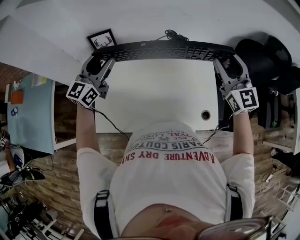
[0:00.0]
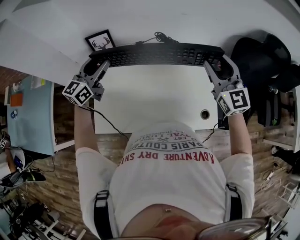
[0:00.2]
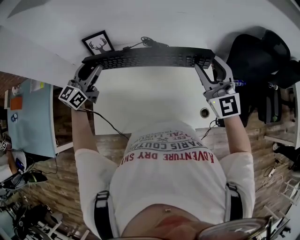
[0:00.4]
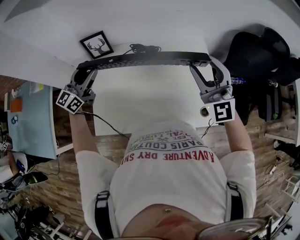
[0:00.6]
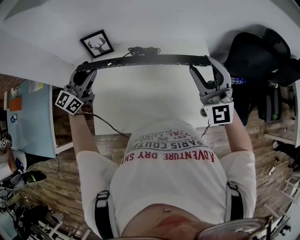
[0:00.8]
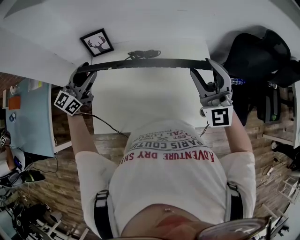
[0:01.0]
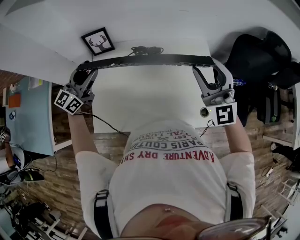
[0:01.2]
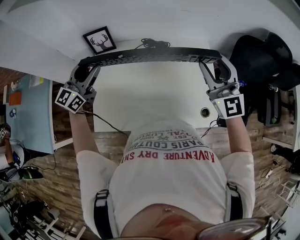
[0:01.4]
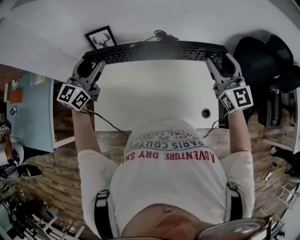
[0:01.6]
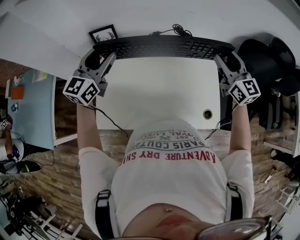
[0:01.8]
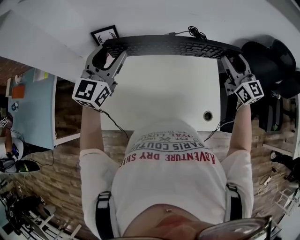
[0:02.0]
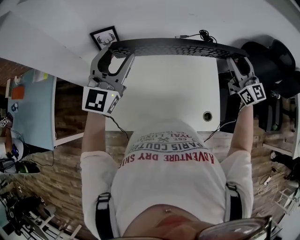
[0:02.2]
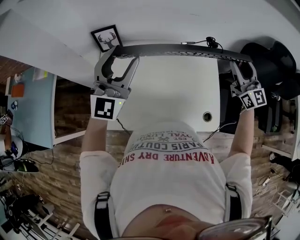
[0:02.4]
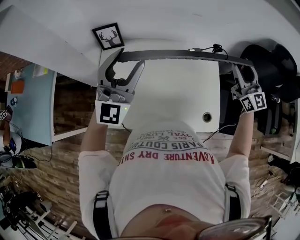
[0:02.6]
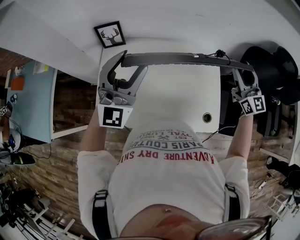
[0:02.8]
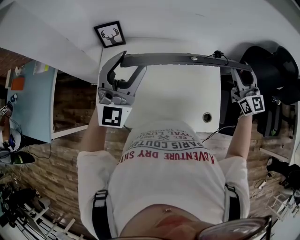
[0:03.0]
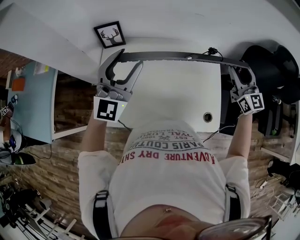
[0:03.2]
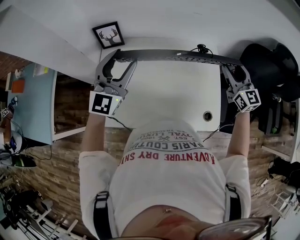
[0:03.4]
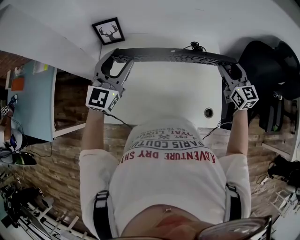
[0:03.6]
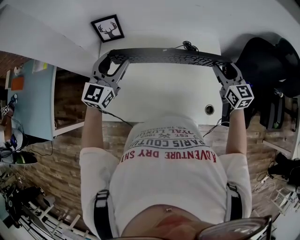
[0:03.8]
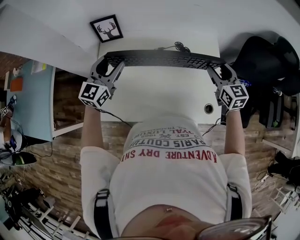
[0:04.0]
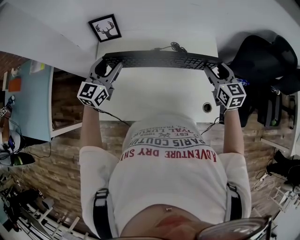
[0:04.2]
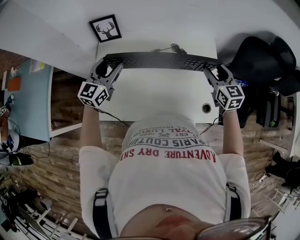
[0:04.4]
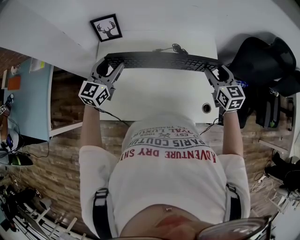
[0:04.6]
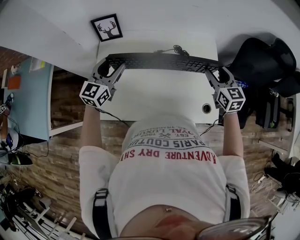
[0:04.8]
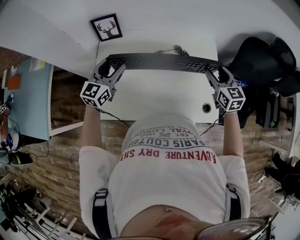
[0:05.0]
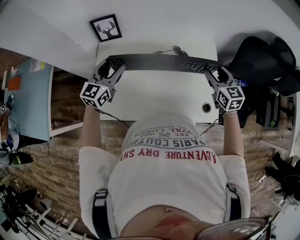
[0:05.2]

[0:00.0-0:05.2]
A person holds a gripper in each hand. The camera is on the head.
0:01.8 to 0:03.4: The left gripper travels to the right by about 5 cm. The right gripper shifts approximately 5 cm downward.
0:03.4 to 0:05.2: The left gripper goes some 15 cm downward and to the left, and rotates roughly 30 degrees; the right gripper travels downward and to the left by about 10 cm.

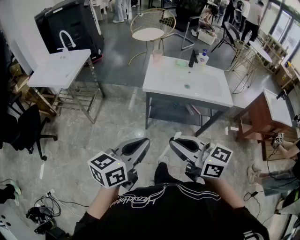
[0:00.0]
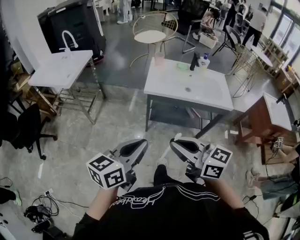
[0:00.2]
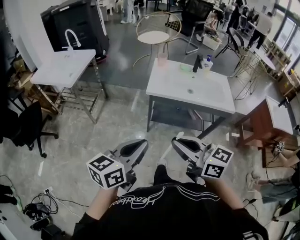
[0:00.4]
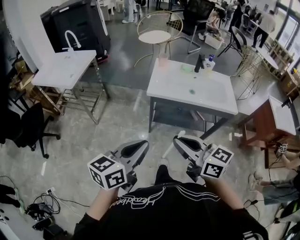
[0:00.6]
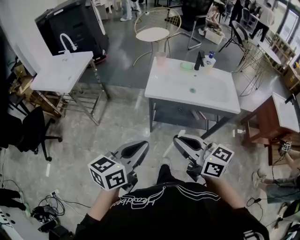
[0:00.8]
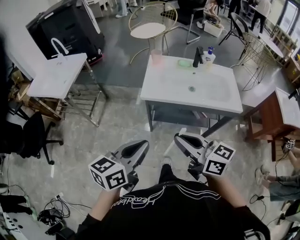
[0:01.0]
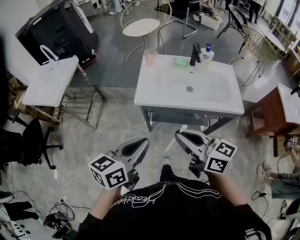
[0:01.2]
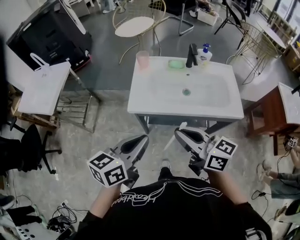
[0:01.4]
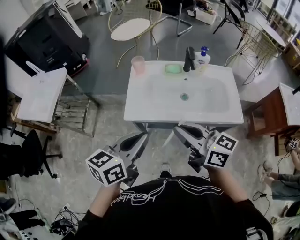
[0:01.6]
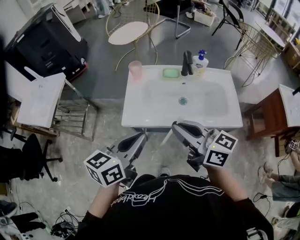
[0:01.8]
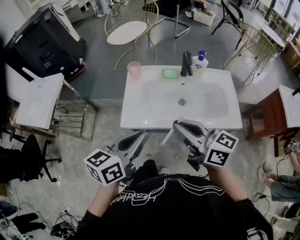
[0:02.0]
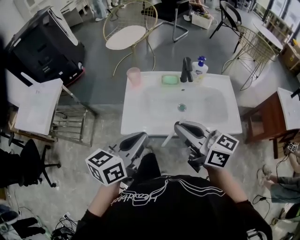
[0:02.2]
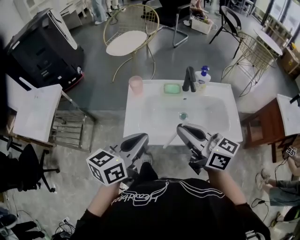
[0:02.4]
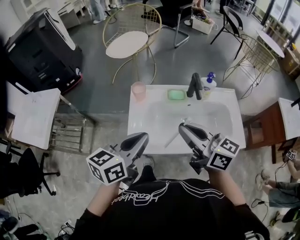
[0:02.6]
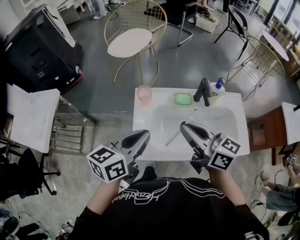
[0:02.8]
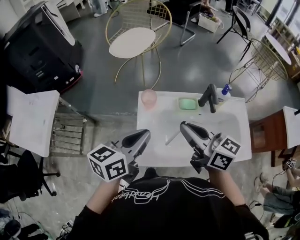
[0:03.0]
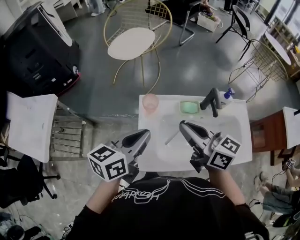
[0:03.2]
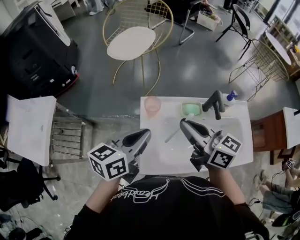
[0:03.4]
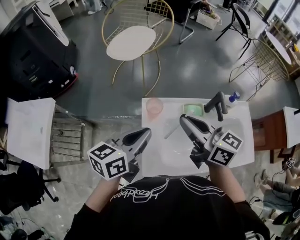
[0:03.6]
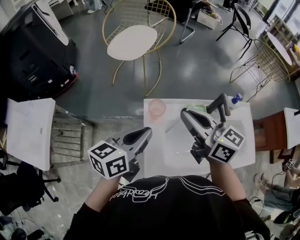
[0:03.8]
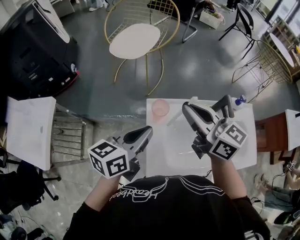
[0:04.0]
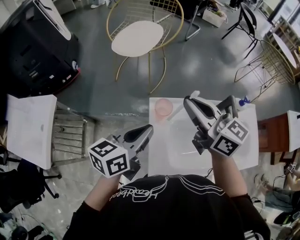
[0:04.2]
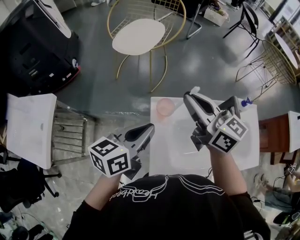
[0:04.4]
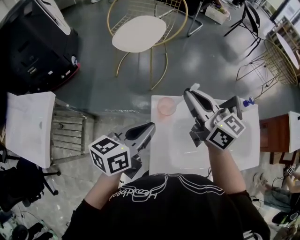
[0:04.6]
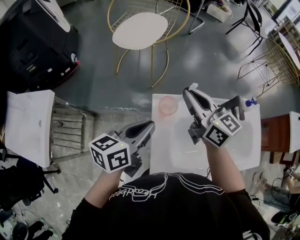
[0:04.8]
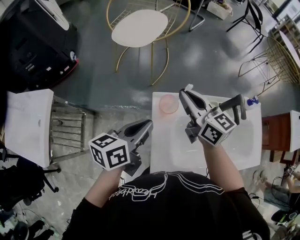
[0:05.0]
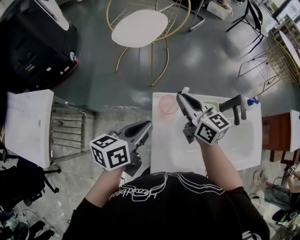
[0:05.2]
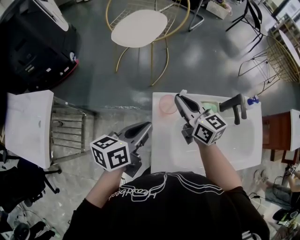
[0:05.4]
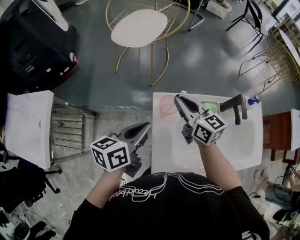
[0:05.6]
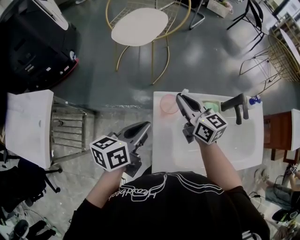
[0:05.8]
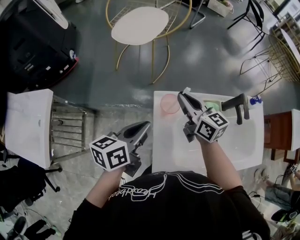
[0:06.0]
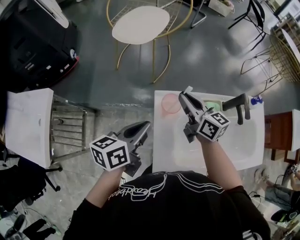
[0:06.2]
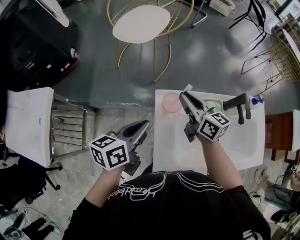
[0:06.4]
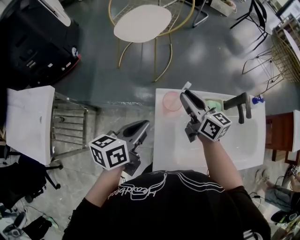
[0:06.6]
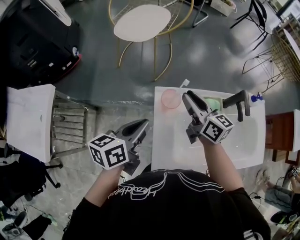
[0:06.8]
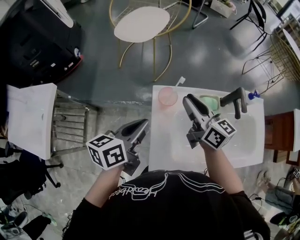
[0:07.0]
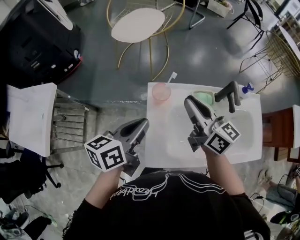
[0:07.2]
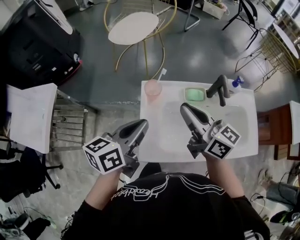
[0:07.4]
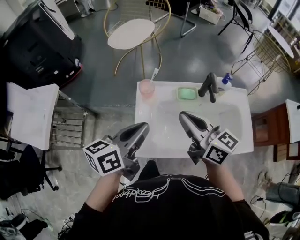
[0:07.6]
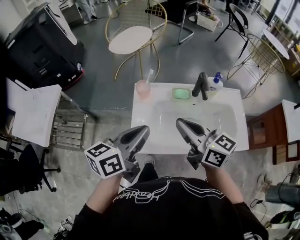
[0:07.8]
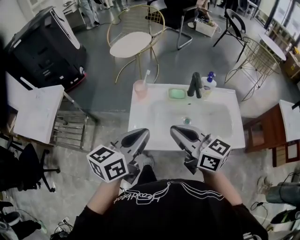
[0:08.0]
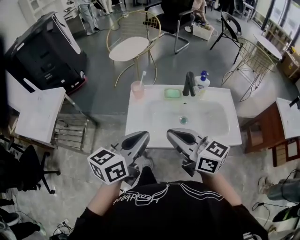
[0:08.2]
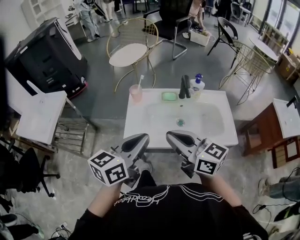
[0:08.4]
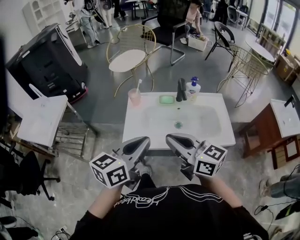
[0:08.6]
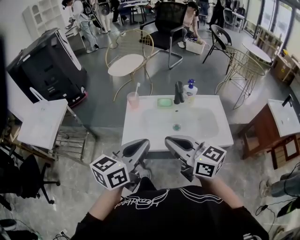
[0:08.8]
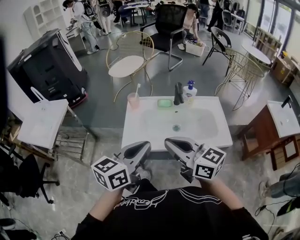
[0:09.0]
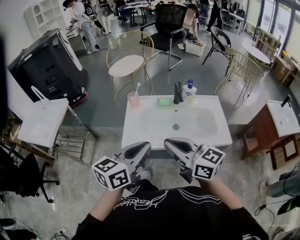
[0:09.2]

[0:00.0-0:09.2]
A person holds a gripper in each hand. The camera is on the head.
0:00.0 to 0:01.6: Both grippers move forward and to the right, roughly 35 cm.
0:01.6 to 0:03.0: Both grippers move forward, roughly 25 cm.
0:03.0 to 0:04.6: The right gripper is displaced forward and to the left by about 20 cm, while the left gripper heads forward and to the left, covering about 10 cm.
0:04.6 to 0:06.2: The left gripper moves downward, roughly 5 cm; the right gripper shifts about 15 cm downward.
0:06.2 to 0:07.6: The two grippers go some 20 cm backward, upward and to the right.
0:07.6 to 0:09.2: The right gripper travels backward by some 25 cm. Meanwhile the left gripper shifts some 25 cm backward and to the right.

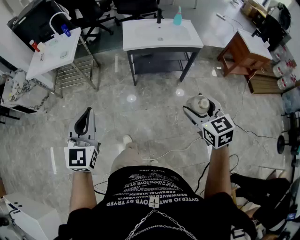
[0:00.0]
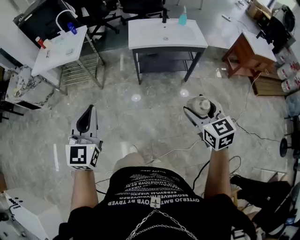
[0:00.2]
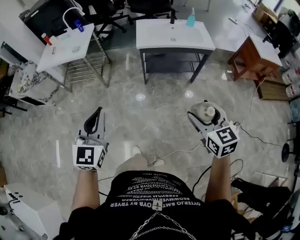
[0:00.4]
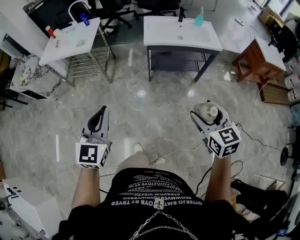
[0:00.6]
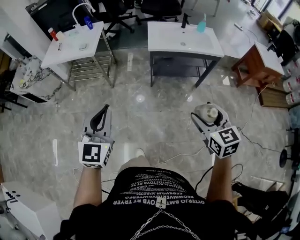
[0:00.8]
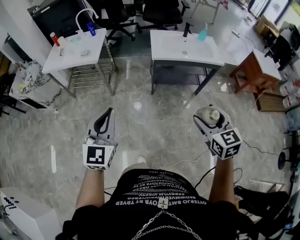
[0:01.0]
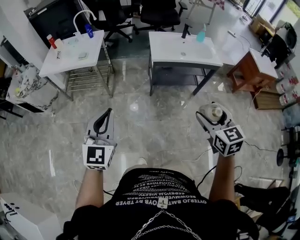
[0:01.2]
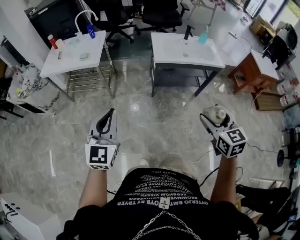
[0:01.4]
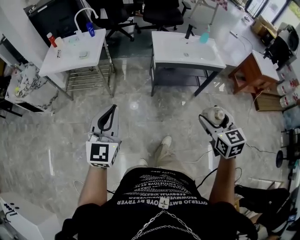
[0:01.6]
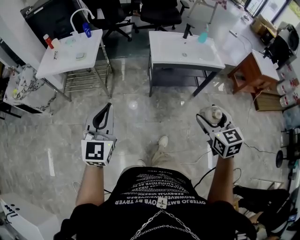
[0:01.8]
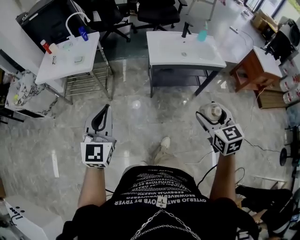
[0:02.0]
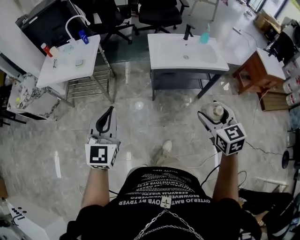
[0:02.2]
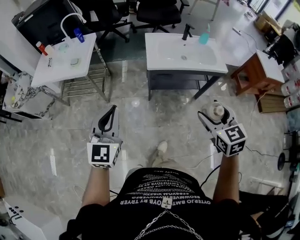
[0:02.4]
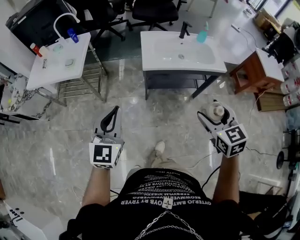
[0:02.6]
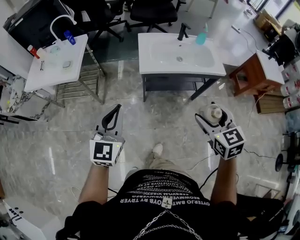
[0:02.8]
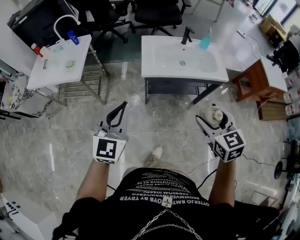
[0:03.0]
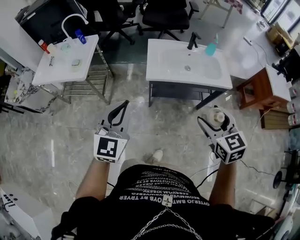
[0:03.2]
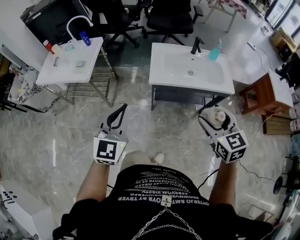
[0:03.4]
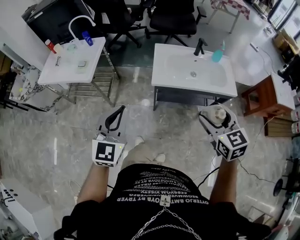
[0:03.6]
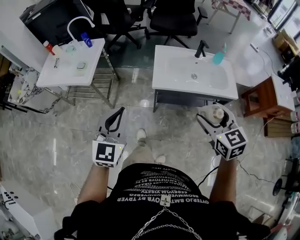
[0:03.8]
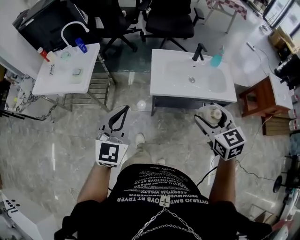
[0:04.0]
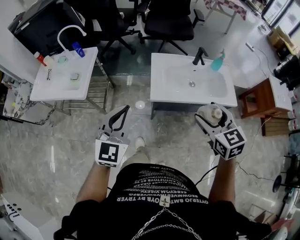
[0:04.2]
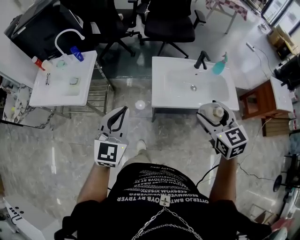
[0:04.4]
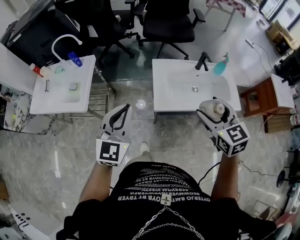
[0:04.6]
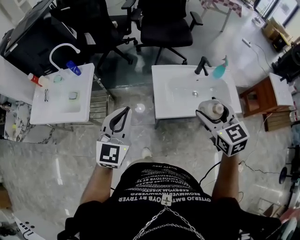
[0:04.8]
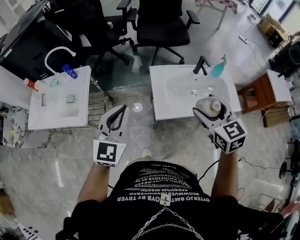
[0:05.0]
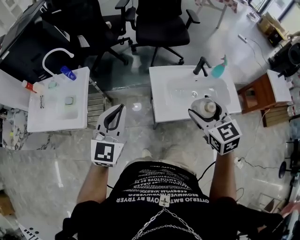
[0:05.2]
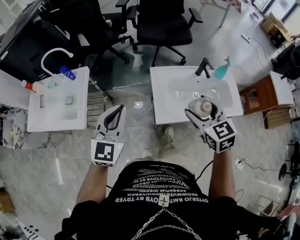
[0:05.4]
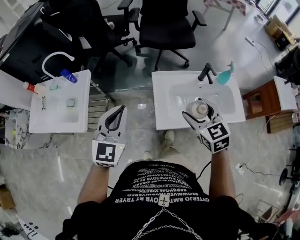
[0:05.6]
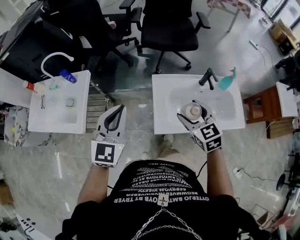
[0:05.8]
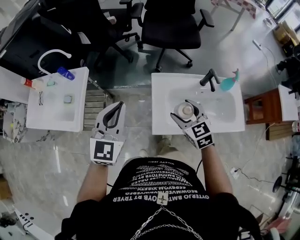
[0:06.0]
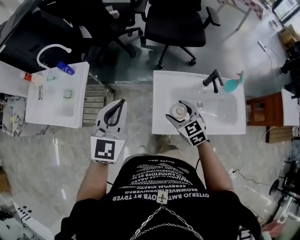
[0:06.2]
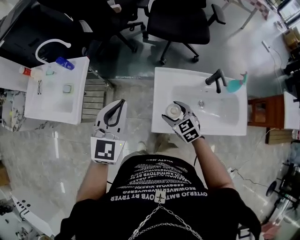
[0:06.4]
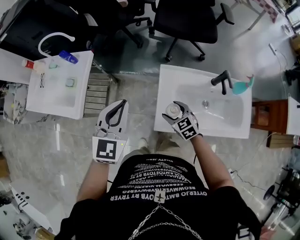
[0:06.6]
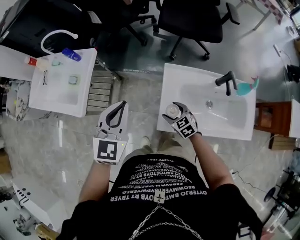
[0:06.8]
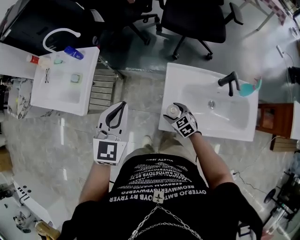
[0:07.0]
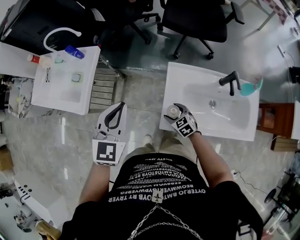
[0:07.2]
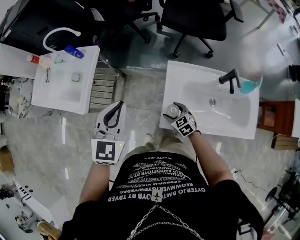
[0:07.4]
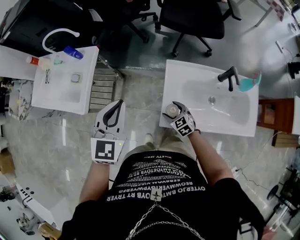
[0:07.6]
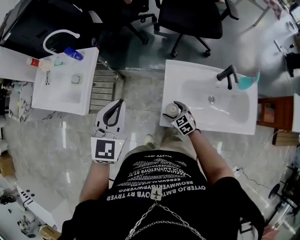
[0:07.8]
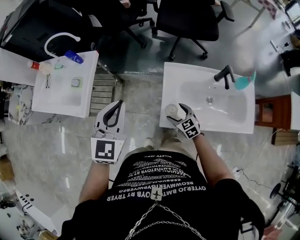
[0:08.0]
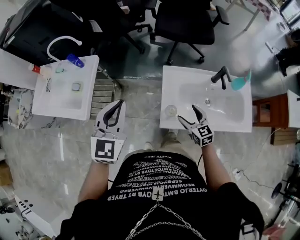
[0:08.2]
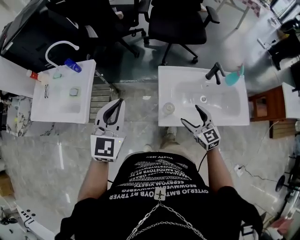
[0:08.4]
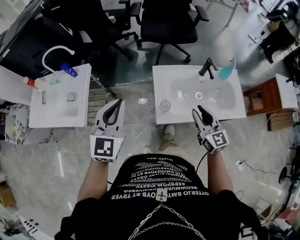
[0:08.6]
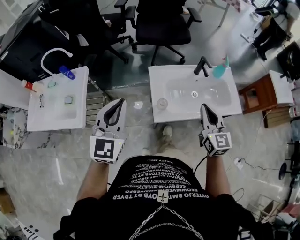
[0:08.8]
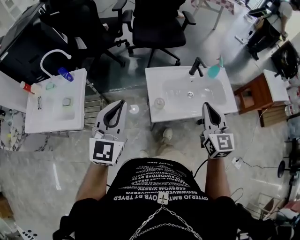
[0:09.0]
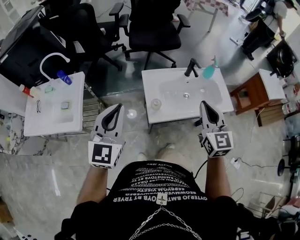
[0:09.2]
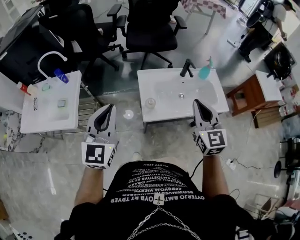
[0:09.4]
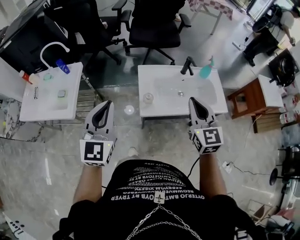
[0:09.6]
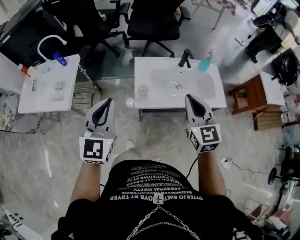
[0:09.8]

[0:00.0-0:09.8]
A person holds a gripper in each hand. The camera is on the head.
0:00.0 to 0:01.4: The right gripper goes some 15 cm to the left. The left gripper is displaced to the left and forward by approximately 15 cm.
0:01.4 to 0:02.8: The two grippers go about 25 cm forward and to the right.
0:02.8 to 0:04.2: Both grippers move forward, about 20 cm.
0:04.2 to 0:05.6: The grippers both shift forward by approximately 25 cm.
0:05.6 to 0:07.0: The right gripper travels downward by some 30 cm, and rotates some 30 degrees. The left gripper shifts approximately 10 cm downward and forward.
0:07.0 to 0:08.4: The left gripper travels upward by about 5 cm; the right gripper heads upward and backward, covering approximately 20 cm, and turns by some 30 degrees.
0:08.4 to 0:09.8: The left gripper heads backward and to the right, covering some 15 cm, while the right gripper shifts about 25 cm upward and backward, rotates approximately 20 degrees, and closes.
